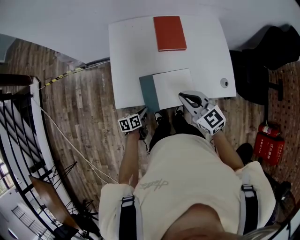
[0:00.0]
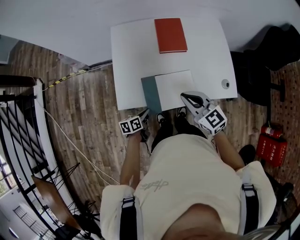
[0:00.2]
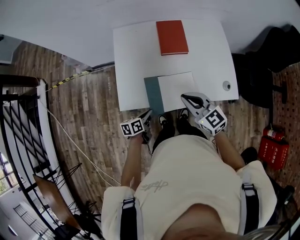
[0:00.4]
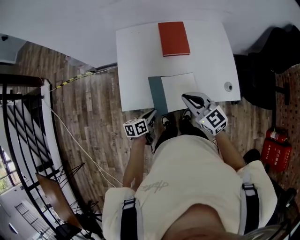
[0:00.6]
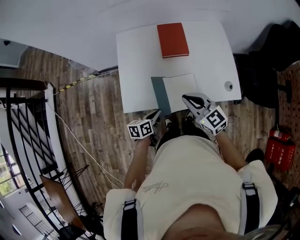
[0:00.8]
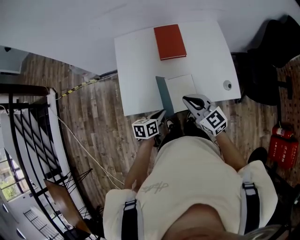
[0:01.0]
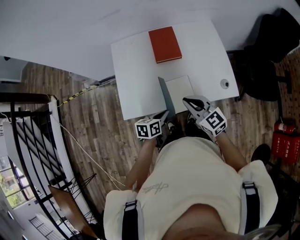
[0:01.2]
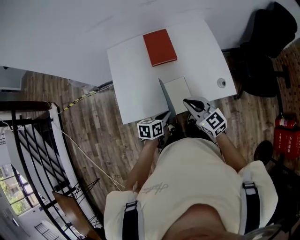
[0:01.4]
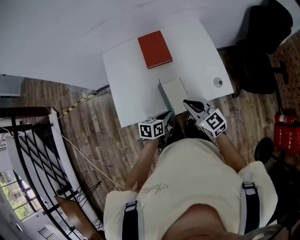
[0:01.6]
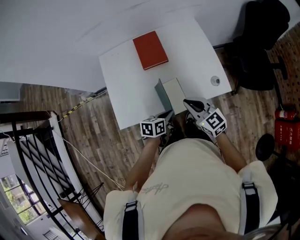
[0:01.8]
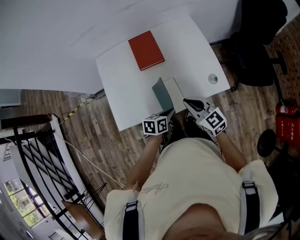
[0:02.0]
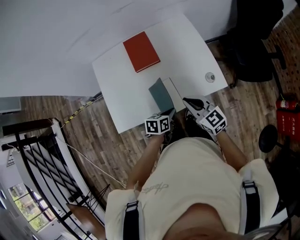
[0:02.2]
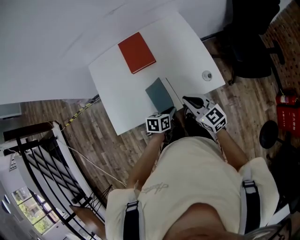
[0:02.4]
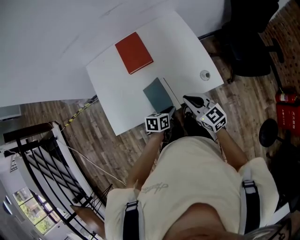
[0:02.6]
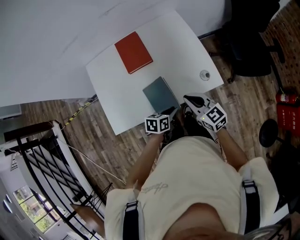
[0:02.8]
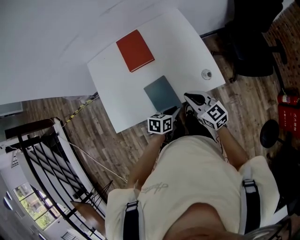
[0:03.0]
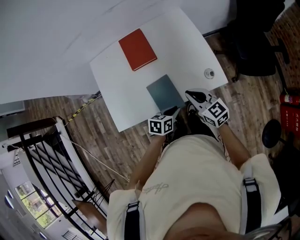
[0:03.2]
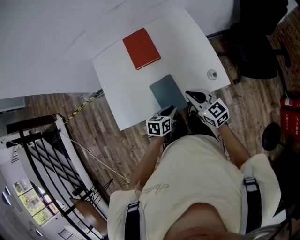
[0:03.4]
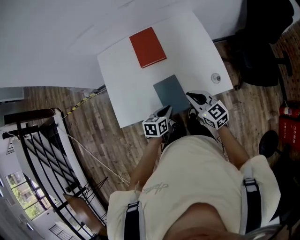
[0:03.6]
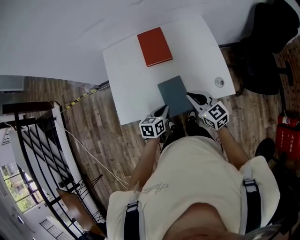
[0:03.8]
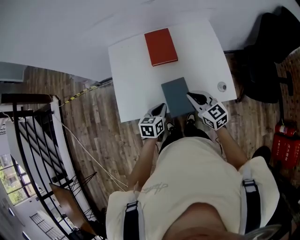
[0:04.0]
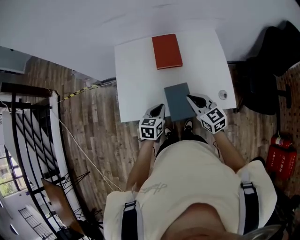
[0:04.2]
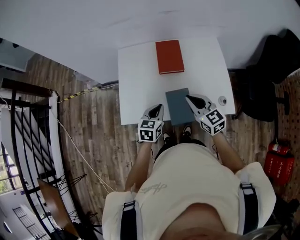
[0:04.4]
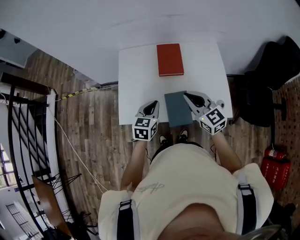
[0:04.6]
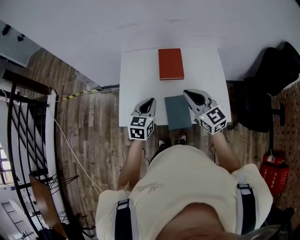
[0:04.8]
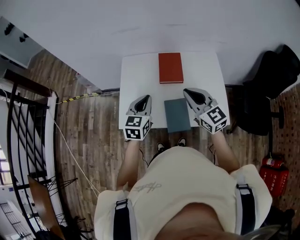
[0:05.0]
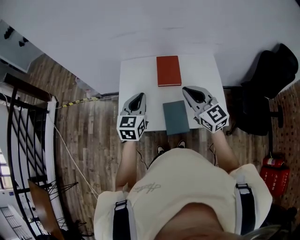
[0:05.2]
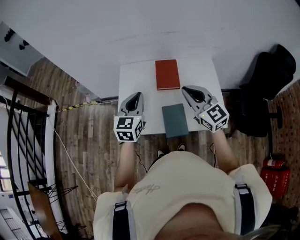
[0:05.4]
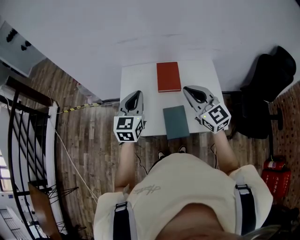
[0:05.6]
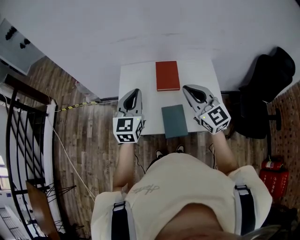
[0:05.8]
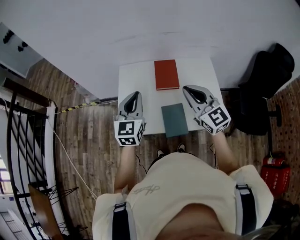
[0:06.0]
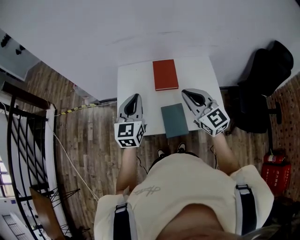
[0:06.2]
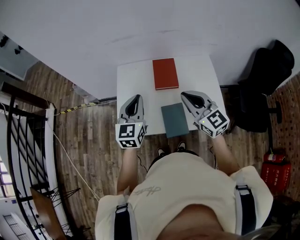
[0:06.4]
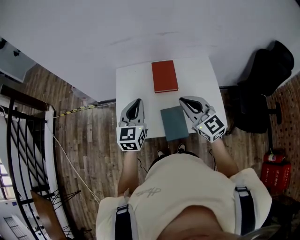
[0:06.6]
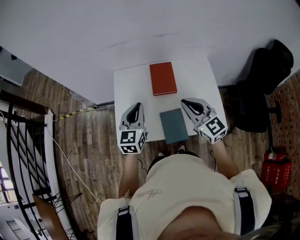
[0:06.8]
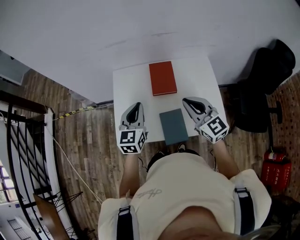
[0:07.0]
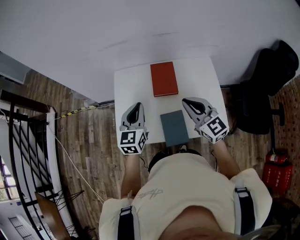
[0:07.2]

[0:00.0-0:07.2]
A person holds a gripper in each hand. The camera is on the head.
0:00.0 to 0:01.4: The right gripper shifts some 5 cm to the right, while the left gripper is displaced upward and to the right by approximately 20 cm, and changes its angle by roughly 20 degrees.
0:01.4 to 0:02.8: Both grippers move to the right, some 10 cm.
0:02.8 to 0:04.4: The right gripper goes about 10 cm to the left and upward; the left gripper shifts approximately 20 cm to the left and upward, and changes its angle by about 40 degrees.
0:04.4 to 0:05.8: The two grippers go about 20 cm upward. The left gripper swivels approximately 30 degrees; the right gripper changes its angle by some 20 degrees.
0:05.8 to 0:07.2: Both grippers move downward, roughly 5 cm.

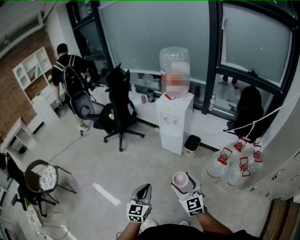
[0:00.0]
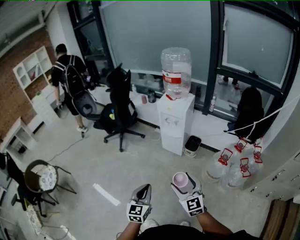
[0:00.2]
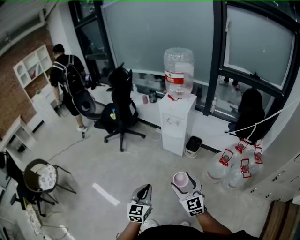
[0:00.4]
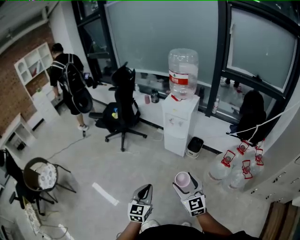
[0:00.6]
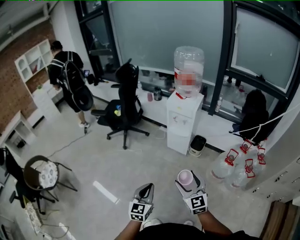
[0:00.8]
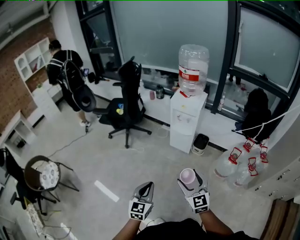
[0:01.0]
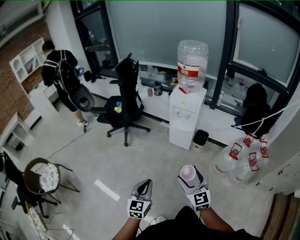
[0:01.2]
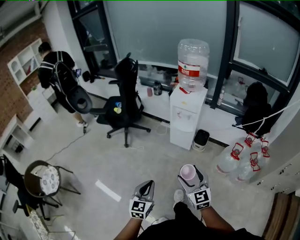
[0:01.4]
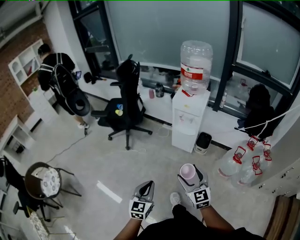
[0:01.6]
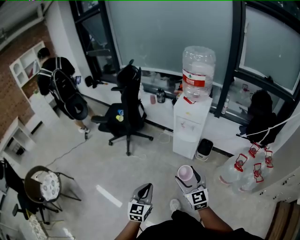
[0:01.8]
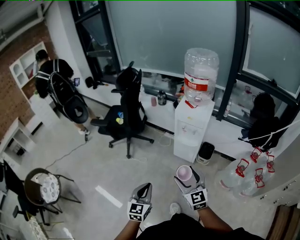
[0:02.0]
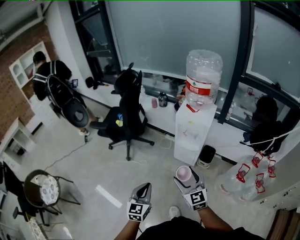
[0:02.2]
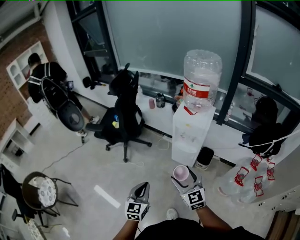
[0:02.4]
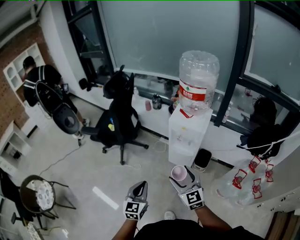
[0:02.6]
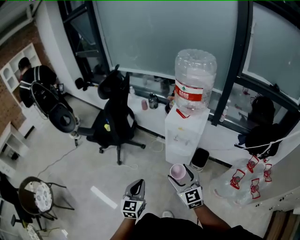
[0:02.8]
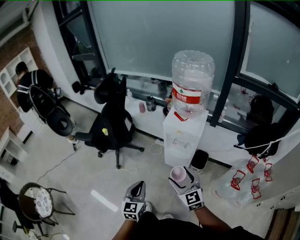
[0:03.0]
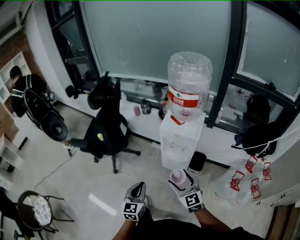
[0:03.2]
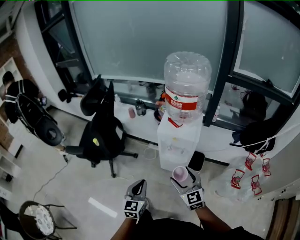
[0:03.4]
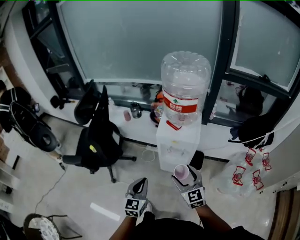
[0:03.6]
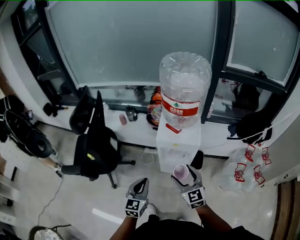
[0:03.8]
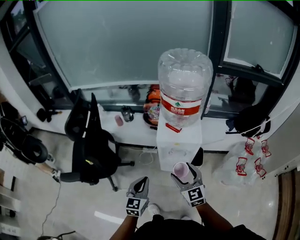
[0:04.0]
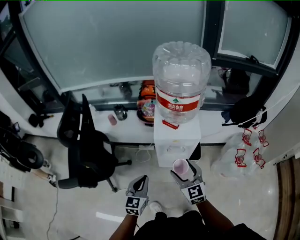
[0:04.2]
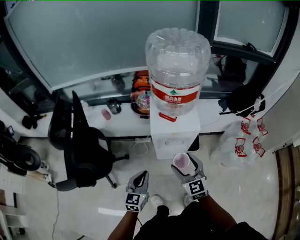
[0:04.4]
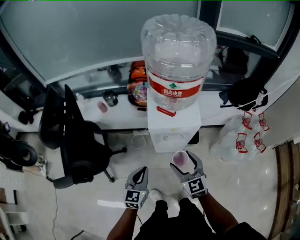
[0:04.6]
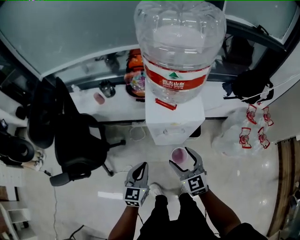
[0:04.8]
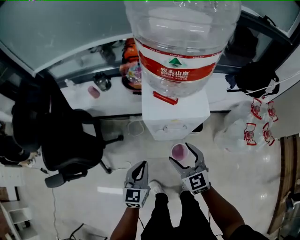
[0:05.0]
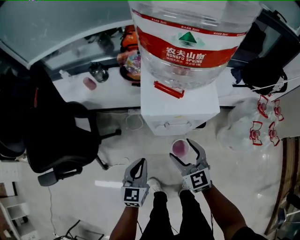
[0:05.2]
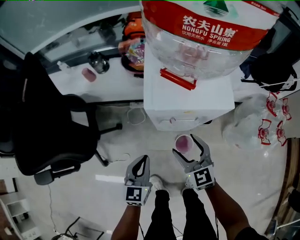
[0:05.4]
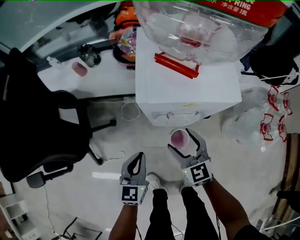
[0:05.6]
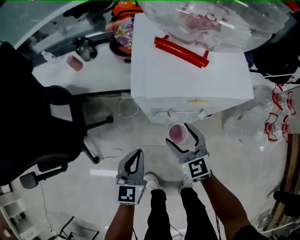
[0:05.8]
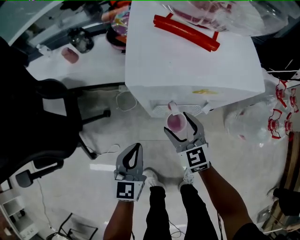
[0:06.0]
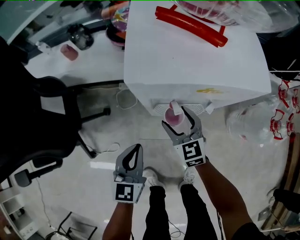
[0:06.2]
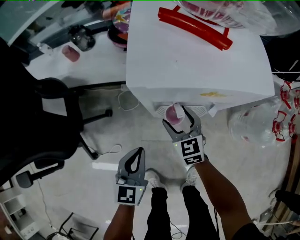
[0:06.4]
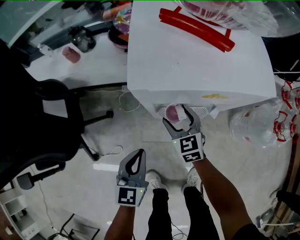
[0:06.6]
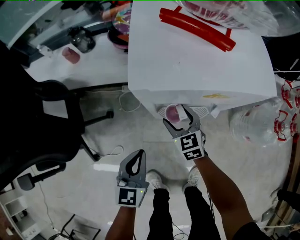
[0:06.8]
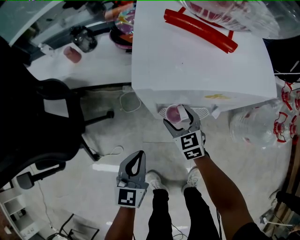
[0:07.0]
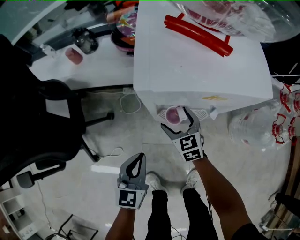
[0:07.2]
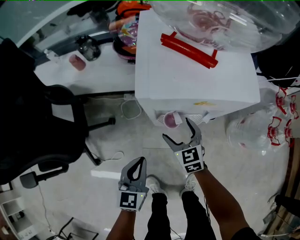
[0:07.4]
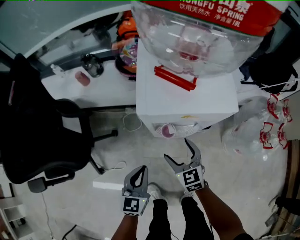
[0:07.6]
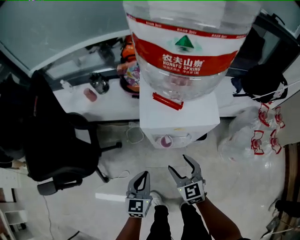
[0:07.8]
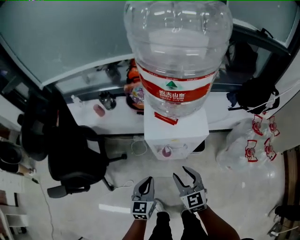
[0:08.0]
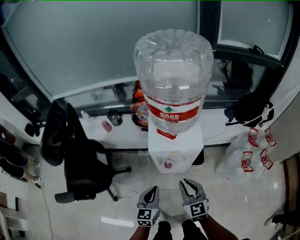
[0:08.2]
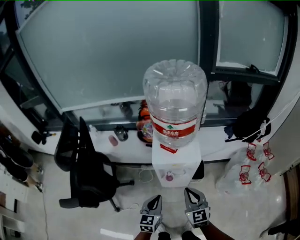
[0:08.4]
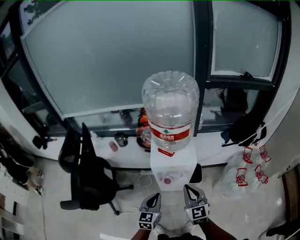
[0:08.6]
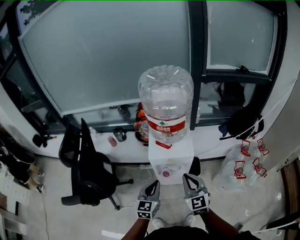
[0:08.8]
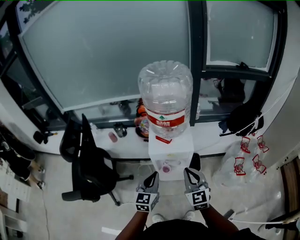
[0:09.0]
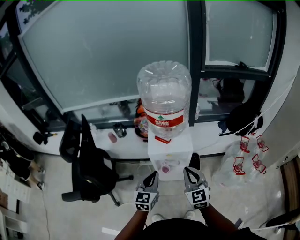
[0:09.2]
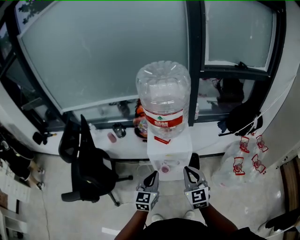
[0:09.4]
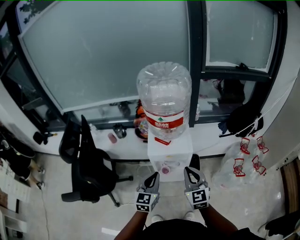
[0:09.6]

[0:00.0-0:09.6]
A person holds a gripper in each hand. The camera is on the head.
0:00.0 to 0:01.6: The two grippers go approximately 15 cm to the left and forward.
0:01.6 to 0:03.2: Both grippers travel together forward, about 30 cm.
0:03.2 to 0:04.8: The right gripper ends up approximately 20 cm from where it was, and turns by about 20 degrees; the left gripper changes place by about 25 cm, and changes its angle by about 30 degrees.
0:04.8 to 0:06.4: The right gripper goes some 35 cm downward and forward. Meanwhile the left gripper goes roughly 20 cm downward.
0:06.4 to 0:08.0: The right gripper travels upward and backward by approximately 30 cm, while the left gripper goes some 15 cm upward.
0:08.0 to 0:09.6: The two grippers go some 20 cm upward. The right gripper closes its fingers.

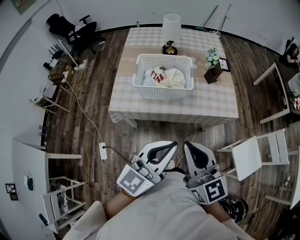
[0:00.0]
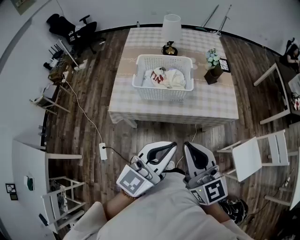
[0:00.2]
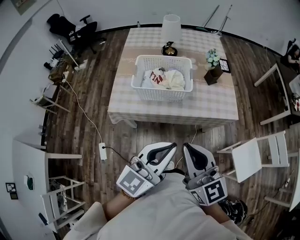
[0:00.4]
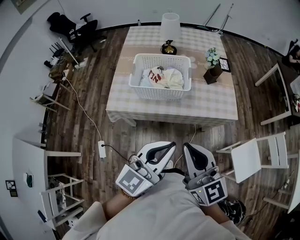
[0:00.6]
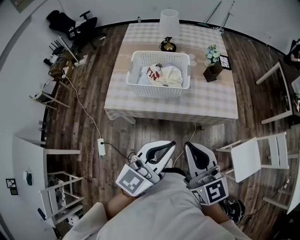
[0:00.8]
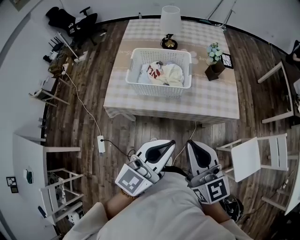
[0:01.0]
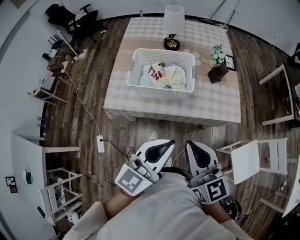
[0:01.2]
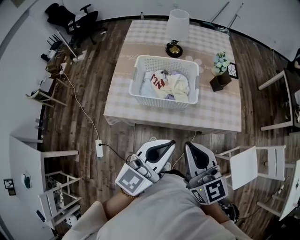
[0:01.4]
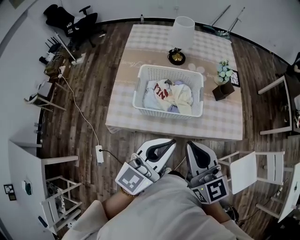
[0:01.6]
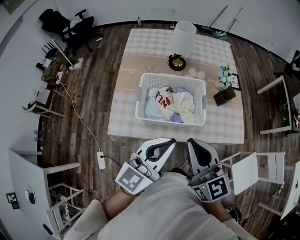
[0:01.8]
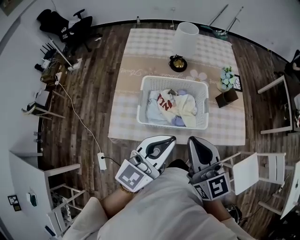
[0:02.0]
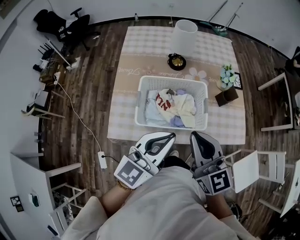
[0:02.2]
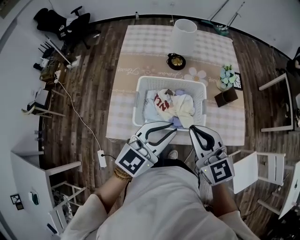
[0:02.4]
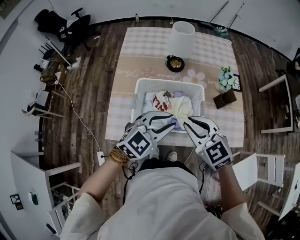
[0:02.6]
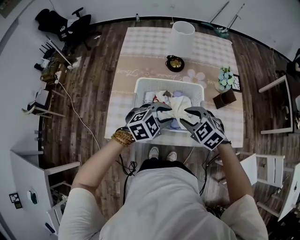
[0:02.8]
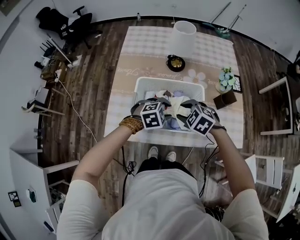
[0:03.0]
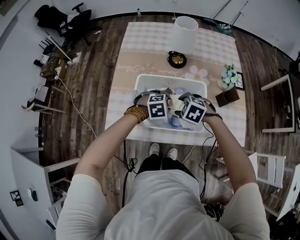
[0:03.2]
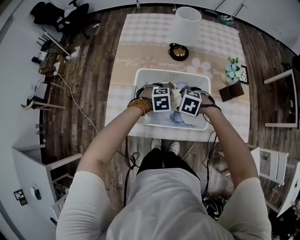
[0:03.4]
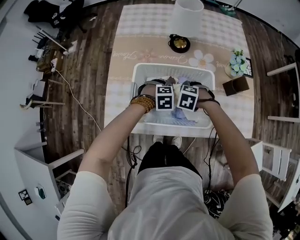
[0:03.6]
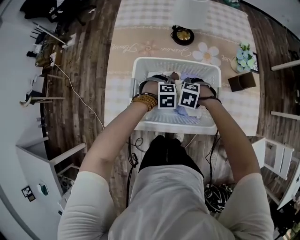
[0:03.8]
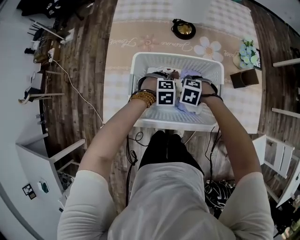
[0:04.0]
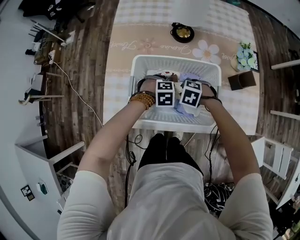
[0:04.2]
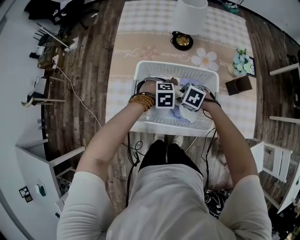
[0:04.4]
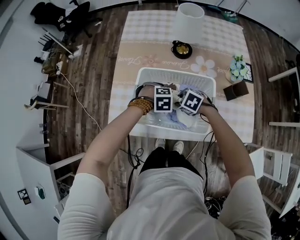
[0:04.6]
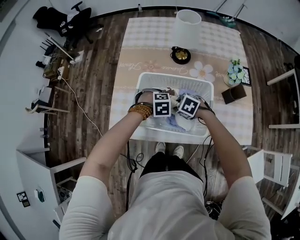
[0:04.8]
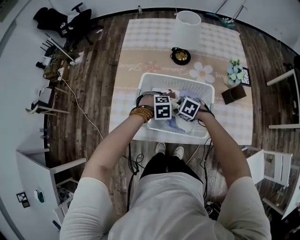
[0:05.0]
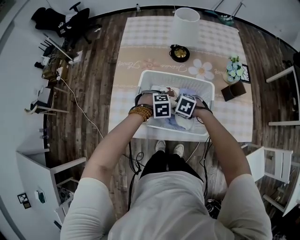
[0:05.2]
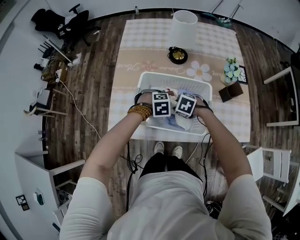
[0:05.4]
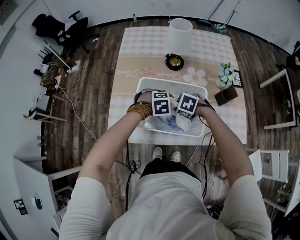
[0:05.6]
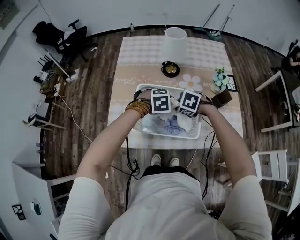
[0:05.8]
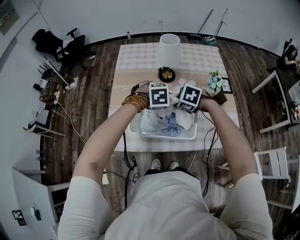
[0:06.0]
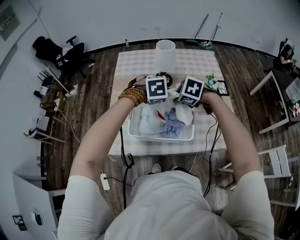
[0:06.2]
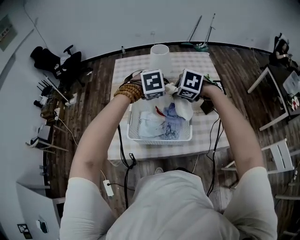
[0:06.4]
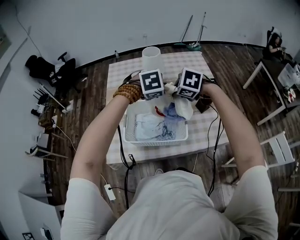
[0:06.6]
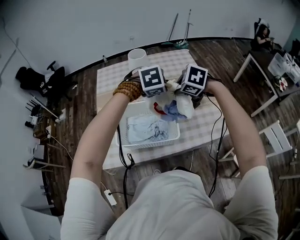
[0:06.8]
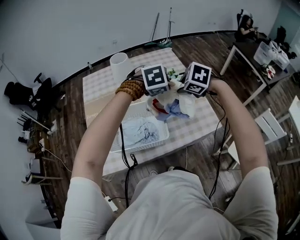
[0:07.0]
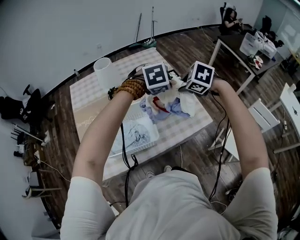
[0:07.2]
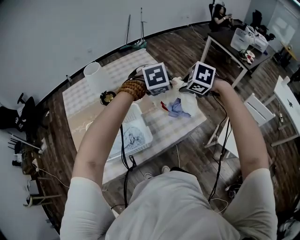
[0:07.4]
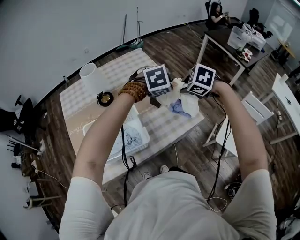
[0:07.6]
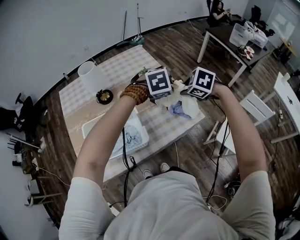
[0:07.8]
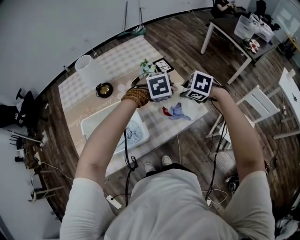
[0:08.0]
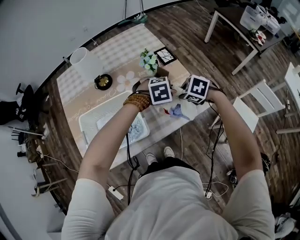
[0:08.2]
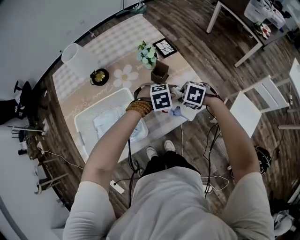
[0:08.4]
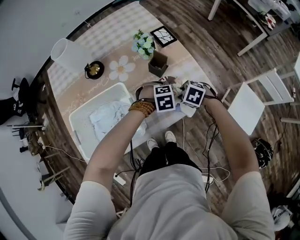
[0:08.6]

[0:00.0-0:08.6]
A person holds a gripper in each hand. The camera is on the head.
0:00.0 to 0:01.4: The grippers both shift forward by approximately 10 cm.
0:01.4 to 0:02.8: Both grippers travel together forward and downward, approximately 30 cm. The left gripper tips its fingers downward by about 40 degrees, and opens; the right gripper angles its fingers downward, by some 40 degrees, and opens.
0:02.8 to 0:04.4: The grippers both shift downward by about 20 cm. The left gripper tilts its fingers approximately 30 degrees downward. Meanwhile the right gripper swivels about 30 degrees, and opens, then closes again.
0:04.4 to 0:05.8: The two grippers go roughly 10 cm upward.
0:05.8 to 0:07.2: The right gripper changes place by roughly 35 cm, and changes its angle by about 30 degrees. The left gripper shifts by roughly 35 cm, and turns by about 30 degrees.
0:07.2 to 0:08.6: Both grippers travel together downward, roughly 30 cm.
